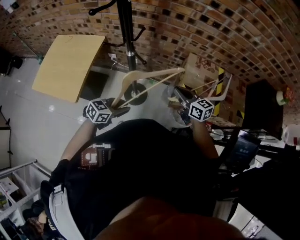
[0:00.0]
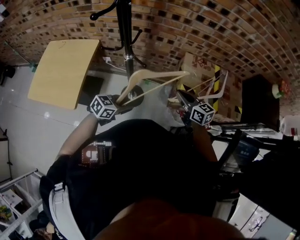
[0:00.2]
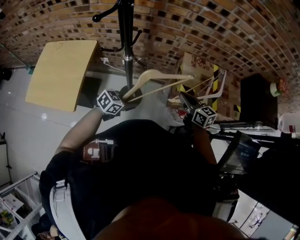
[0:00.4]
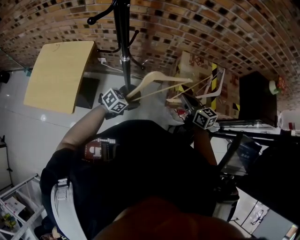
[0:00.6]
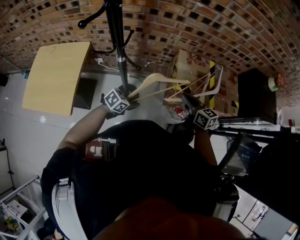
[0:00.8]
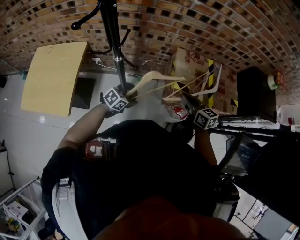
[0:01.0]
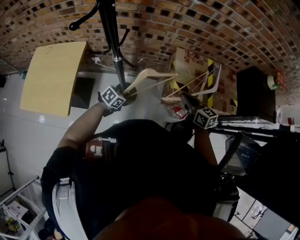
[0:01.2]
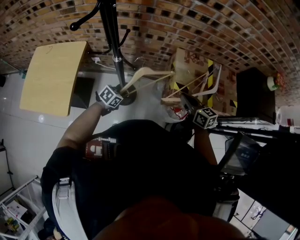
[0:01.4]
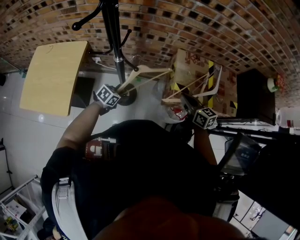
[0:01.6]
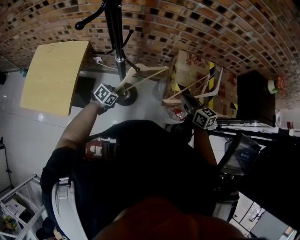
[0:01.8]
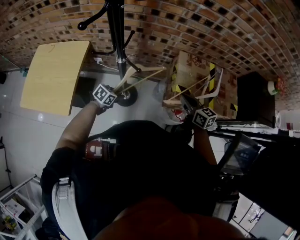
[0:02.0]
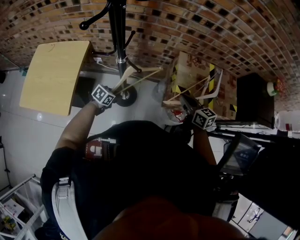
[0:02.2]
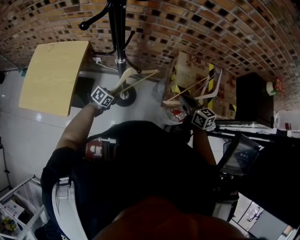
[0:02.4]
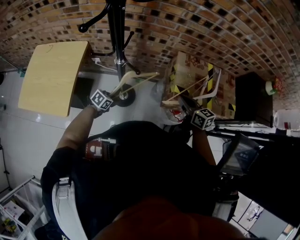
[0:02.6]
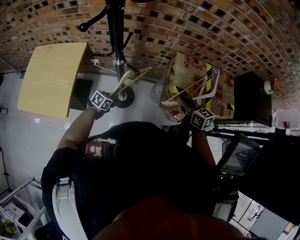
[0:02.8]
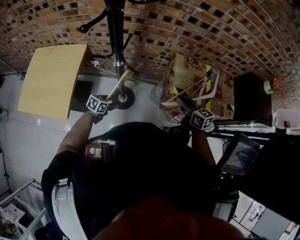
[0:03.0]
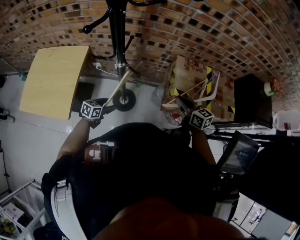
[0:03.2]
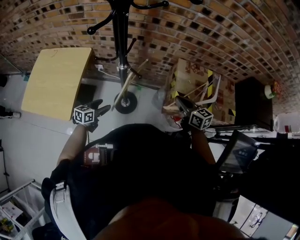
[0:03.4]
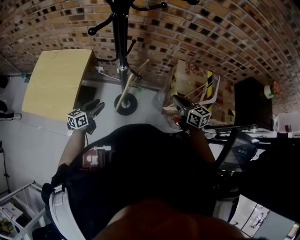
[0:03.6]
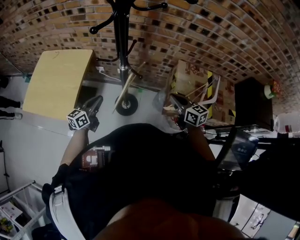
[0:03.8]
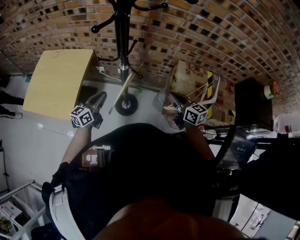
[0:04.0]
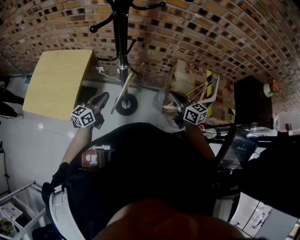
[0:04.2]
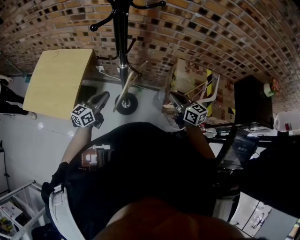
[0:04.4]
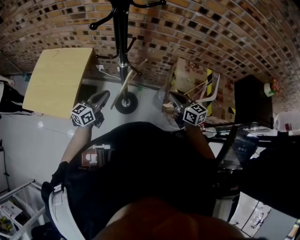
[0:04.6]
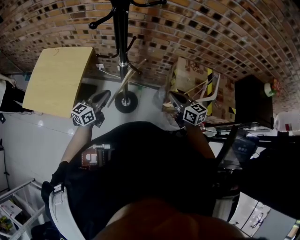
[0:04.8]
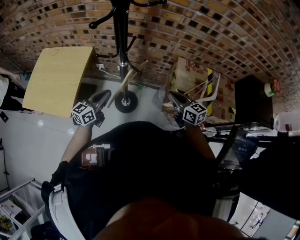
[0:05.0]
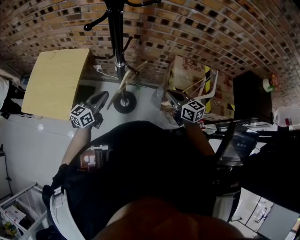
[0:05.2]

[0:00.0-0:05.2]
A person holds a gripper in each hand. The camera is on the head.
0:00.0 to 0:01.8: The left gripper moves downward, forward and to the left, roughly 15 cm, and swivels approximately 20 degrees. Meanwhile the right gripper goes about 5 cm to the right.
0:01.8 to 0:03.4: The left gripper shifts approximately 10 cm to the left, changes its angle by some 30 degrees, and opens its fingers.
0:03.4 to 0:05.2: The left gripper is displaced upward by approximately 15 cm, changes its angle by about 20 degrees, and closes.

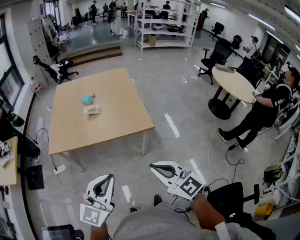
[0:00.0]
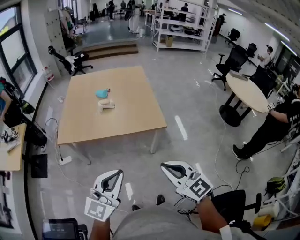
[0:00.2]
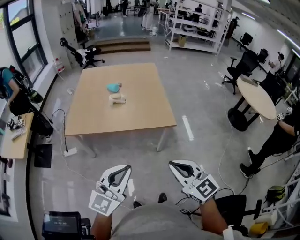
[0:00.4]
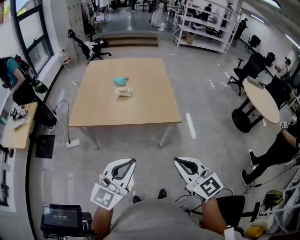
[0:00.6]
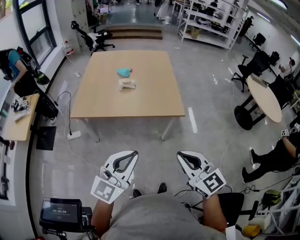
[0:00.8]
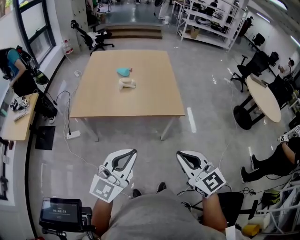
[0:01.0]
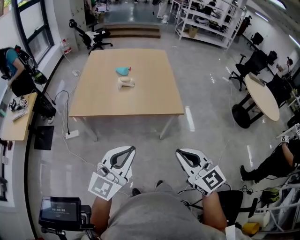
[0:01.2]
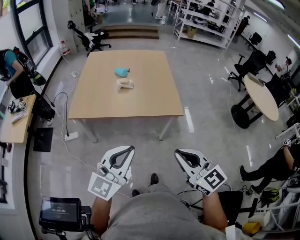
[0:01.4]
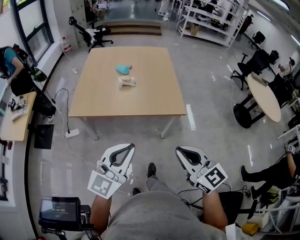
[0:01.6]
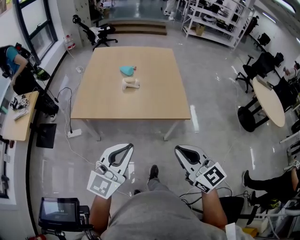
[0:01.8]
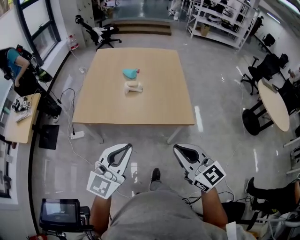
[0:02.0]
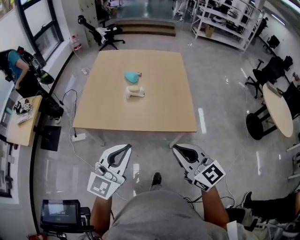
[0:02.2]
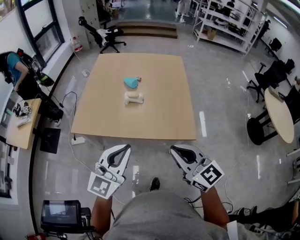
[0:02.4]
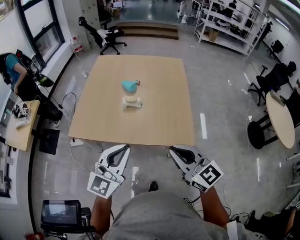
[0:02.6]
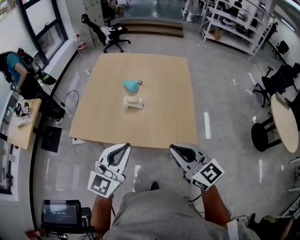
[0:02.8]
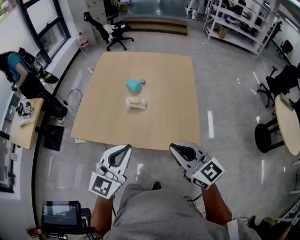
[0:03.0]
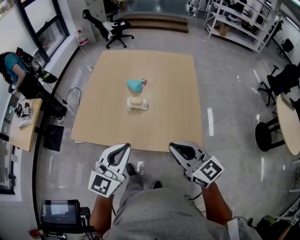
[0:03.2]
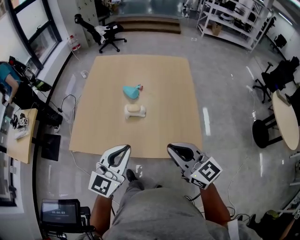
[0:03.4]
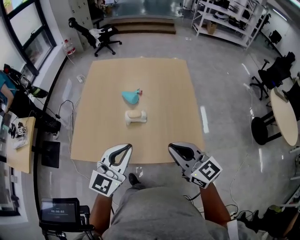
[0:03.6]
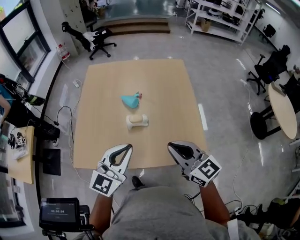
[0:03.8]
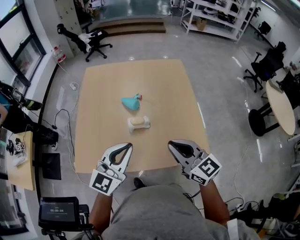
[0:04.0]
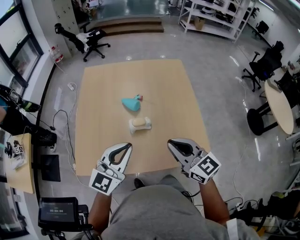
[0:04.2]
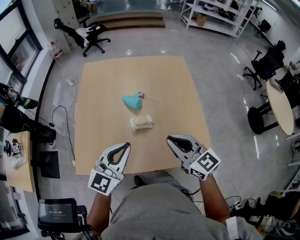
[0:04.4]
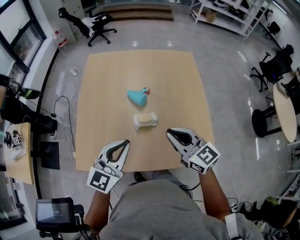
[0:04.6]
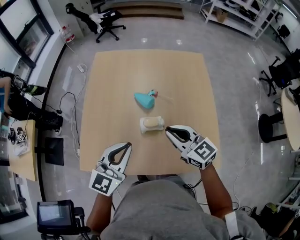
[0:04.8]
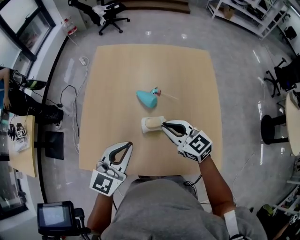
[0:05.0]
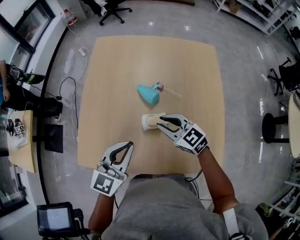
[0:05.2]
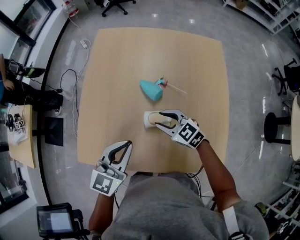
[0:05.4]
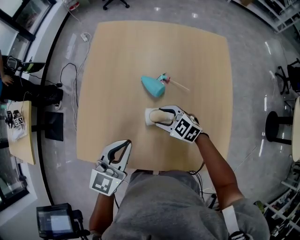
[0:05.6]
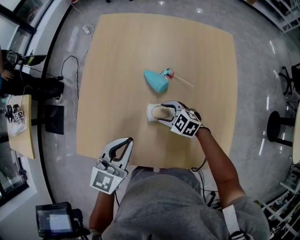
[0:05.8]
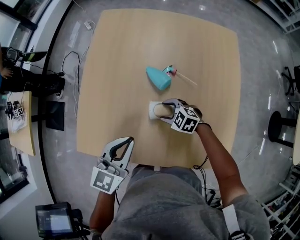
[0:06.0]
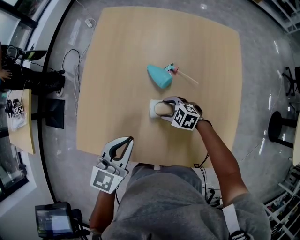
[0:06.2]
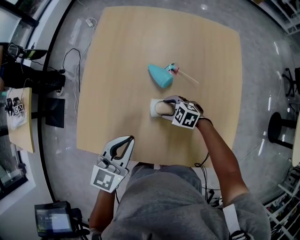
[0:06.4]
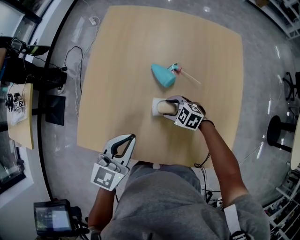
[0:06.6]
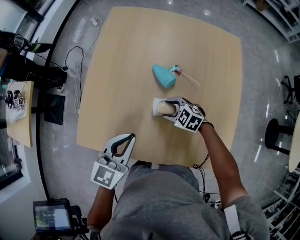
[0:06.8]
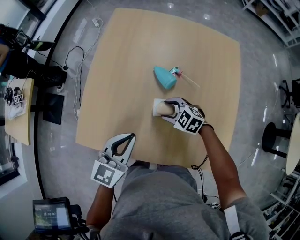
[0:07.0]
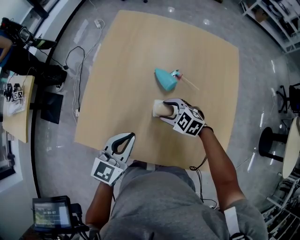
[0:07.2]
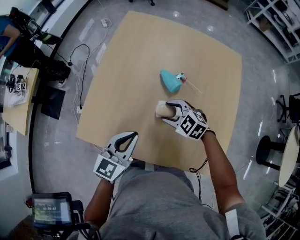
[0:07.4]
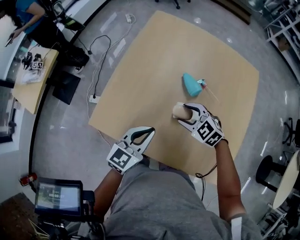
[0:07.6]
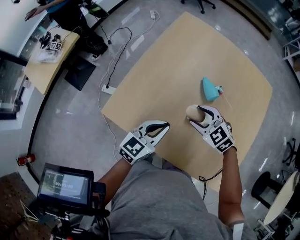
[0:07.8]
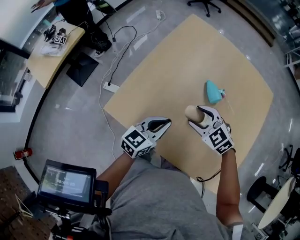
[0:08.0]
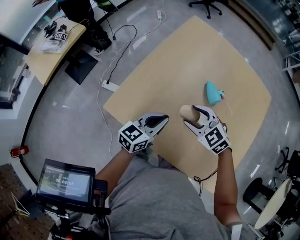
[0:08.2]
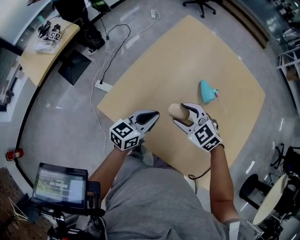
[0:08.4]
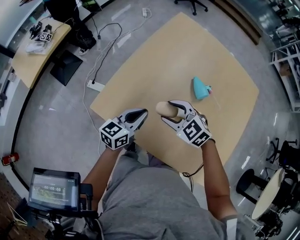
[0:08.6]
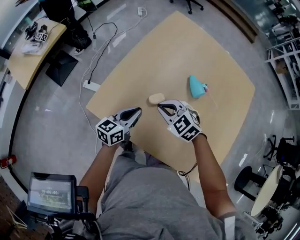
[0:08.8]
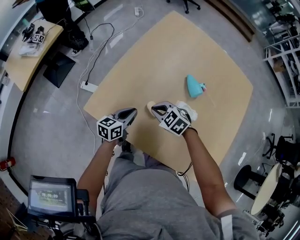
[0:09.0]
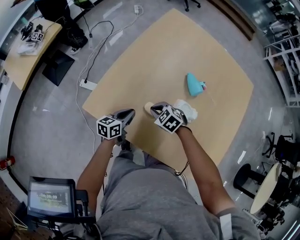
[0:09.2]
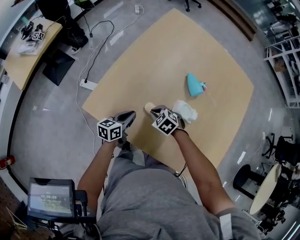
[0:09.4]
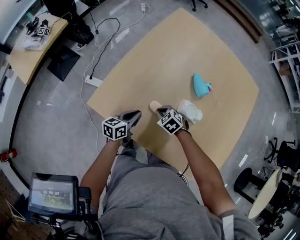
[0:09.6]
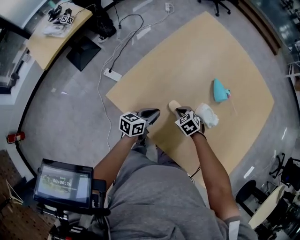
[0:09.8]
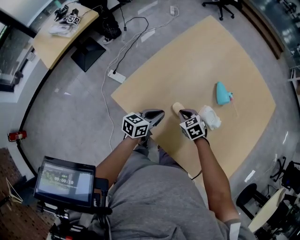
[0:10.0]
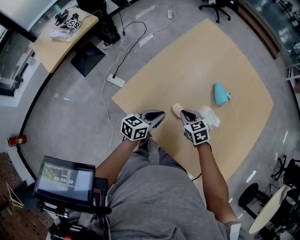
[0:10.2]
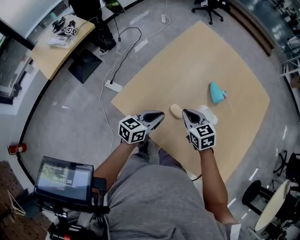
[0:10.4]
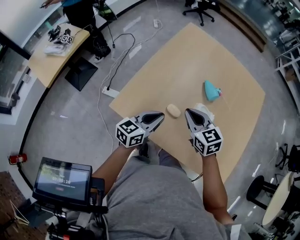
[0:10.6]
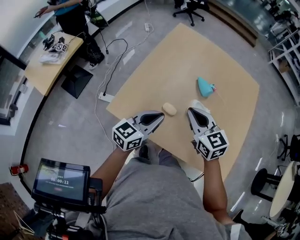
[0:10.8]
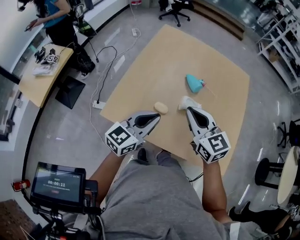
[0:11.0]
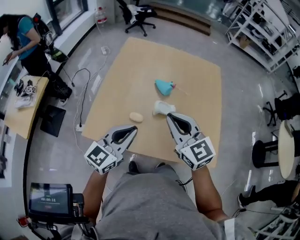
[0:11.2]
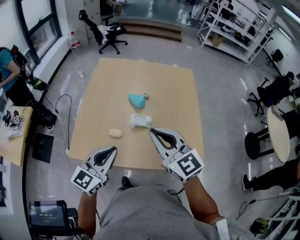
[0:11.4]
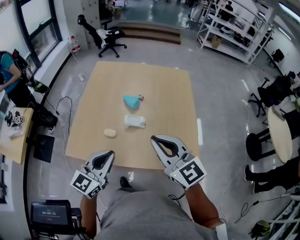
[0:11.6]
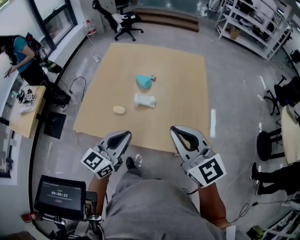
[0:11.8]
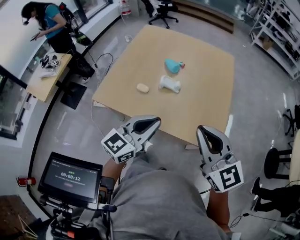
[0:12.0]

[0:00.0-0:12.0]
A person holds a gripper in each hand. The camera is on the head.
0:00.0 to 0:01.6: The left gripper travels to the left and forward by some 10 cm. The right gripper goes approximately 5 cm to the left.
0:01.6 to 0:03.0: Both grippers move forward, roughly 30 cm.
0:03.0 to 0:04.4: Both grippers travel together forward and to the left, some 25 cm.
0:04.4 to 0:06.0: The left gripper moves about 15 cm, and turns by roughly 30 degrees; the right gripper moves downward, some 35 cm, angles its fingers downward, by approximately 40 degrees, and opens up.
0:06.0 to 0:07.6: The right gripper travels upward by roughly 15 cm, while the left gripper shifts by some 5 cm.
0:07.6 to 0:09.0: The right gripper heads to the left and downward, covering about 20 cm, and closes, while the left gripper shifts about 20 cm downward and to the left, and changes its angle by roughly 30 degrees.
0:09.0 to 0:10.4: The two grippers go approximately 10 cm upward. The right gripper changes its angle by approximately 30 degrees.
0:10.4 to 0:12.0: The left gripper heads to the right, backward and upward, covering about 40 cm, and swivels some 30 degrees; the right gripper goes approximately 50 cm backward, to the right and upward, and angles its fingers upward, by approximately 30 degrees.

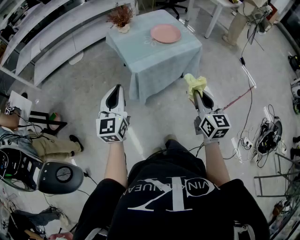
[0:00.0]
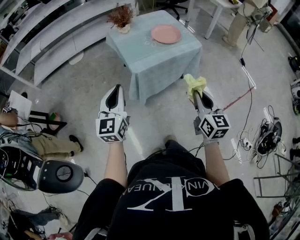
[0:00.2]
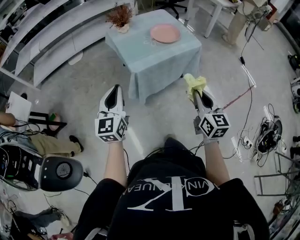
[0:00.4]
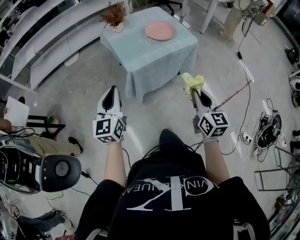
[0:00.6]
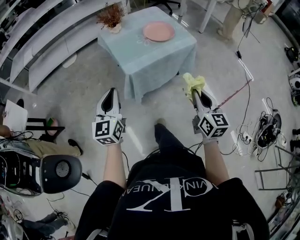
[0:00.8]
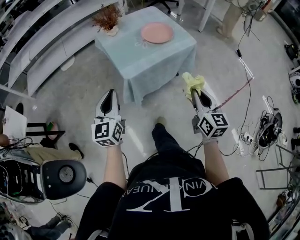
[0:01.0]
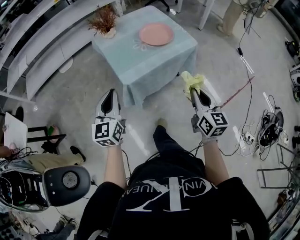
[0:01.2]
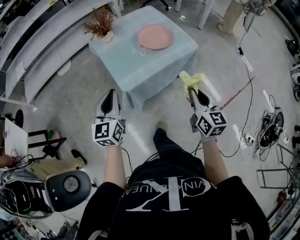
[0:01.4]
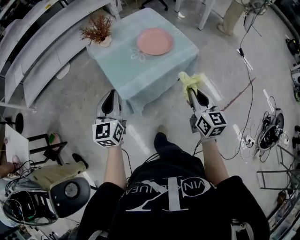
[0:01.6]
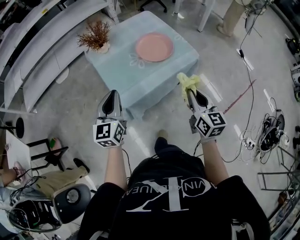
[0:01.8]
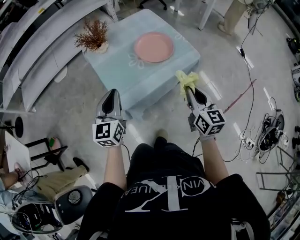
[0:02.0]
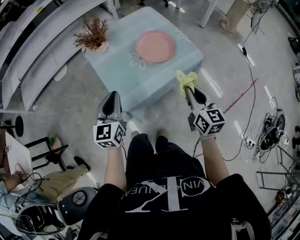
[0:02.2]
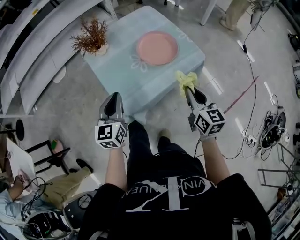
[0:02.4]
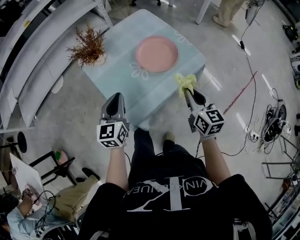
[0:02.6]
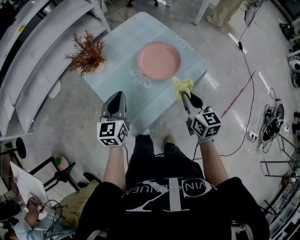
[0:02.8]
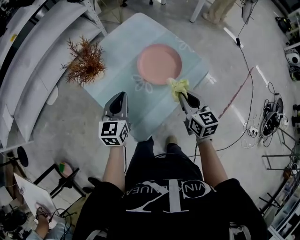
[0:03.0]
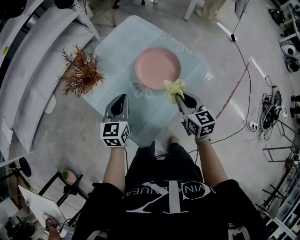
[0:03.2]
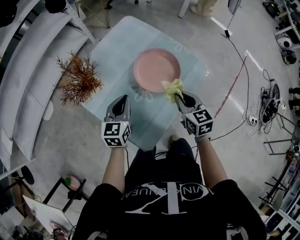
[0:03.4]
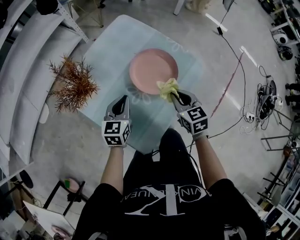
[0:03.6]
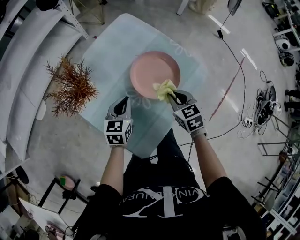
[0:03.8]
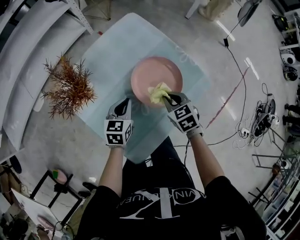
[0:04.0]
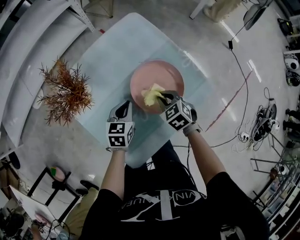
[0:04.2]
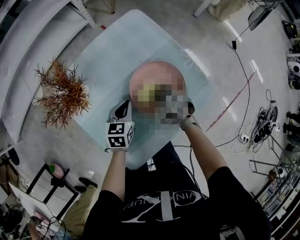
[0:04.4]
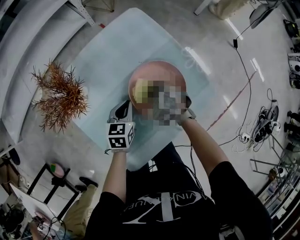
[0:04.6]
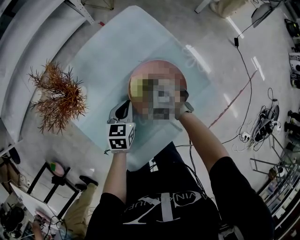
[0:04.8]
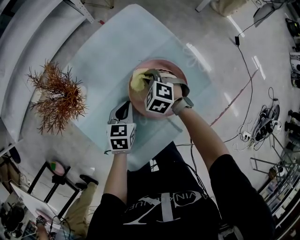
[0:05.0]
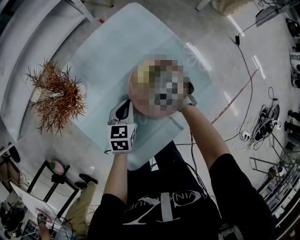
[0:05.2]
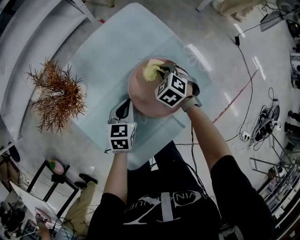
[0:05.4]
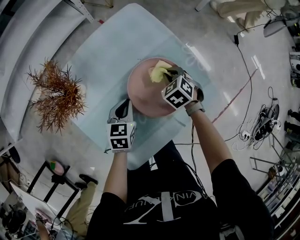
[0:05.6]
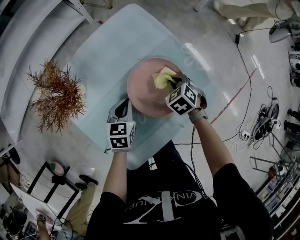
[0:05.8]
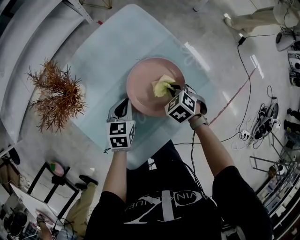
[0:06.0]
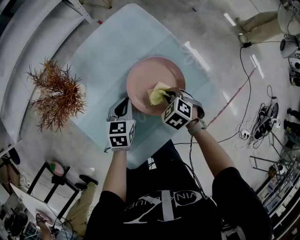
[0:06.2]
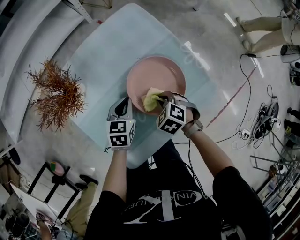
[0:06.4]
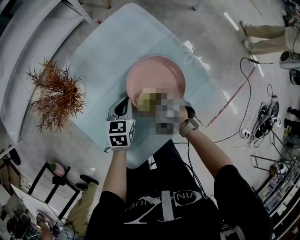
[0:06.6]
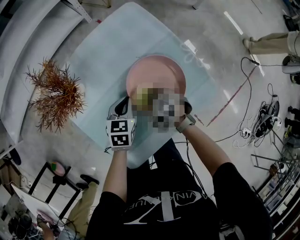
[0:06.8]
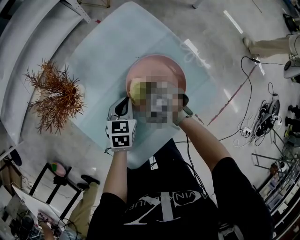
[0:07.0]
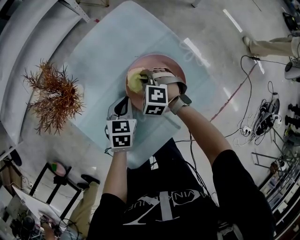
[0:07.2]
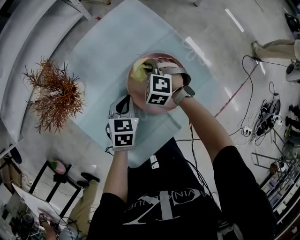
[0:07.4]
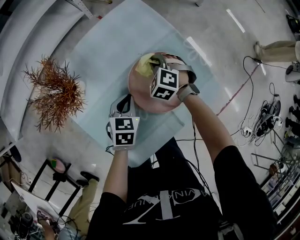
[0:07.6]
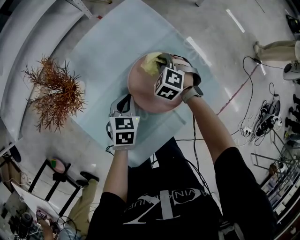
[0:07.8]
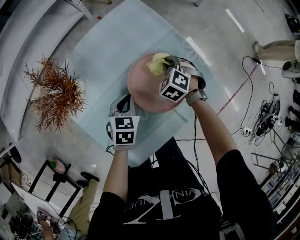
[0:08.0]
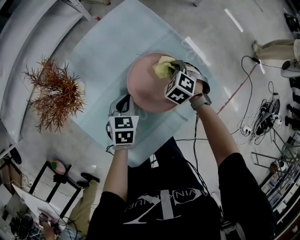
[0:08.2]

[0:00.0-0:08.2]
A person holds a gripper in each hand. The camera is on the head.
0:00.0 to 0:01.6: Both grippers move forward, about 20 cm.
0:01.6 to 0:03.2: Both grippers travel together forward, roughly 35 cm. The left gripper rotates approximately 30 degrees.
0:03.2 to 0:05.0: The left gripper shifts roughly 20 cm downward and forward, and swivels approximately 20 degrees, while the right gripper is displaced forward and downward by about 30 cm, and twists roughly 60 degrees counterclockwise, seen from behind.
0:05.0 to 0:06.6: The right gripper is displaced backward by about 10 cm.
0:06.6 to 0:08.2: The right gripper heads forward and to the right, covering roughly 15 cm.
